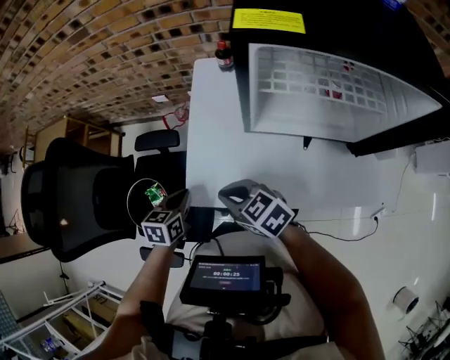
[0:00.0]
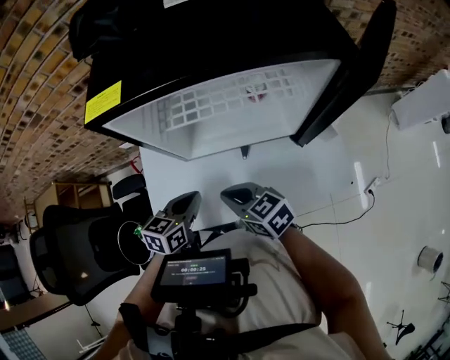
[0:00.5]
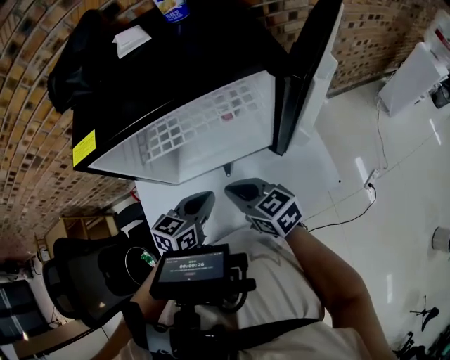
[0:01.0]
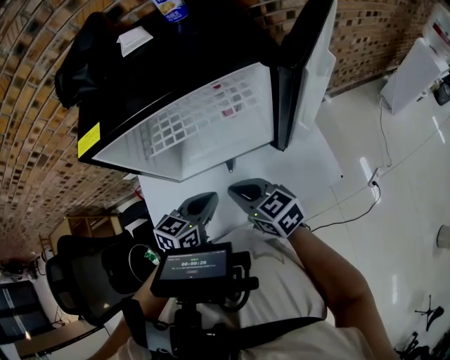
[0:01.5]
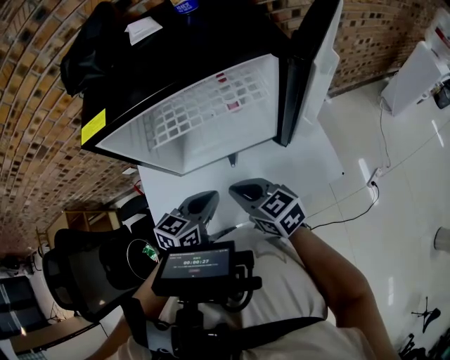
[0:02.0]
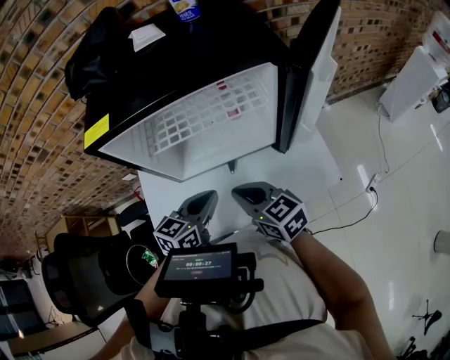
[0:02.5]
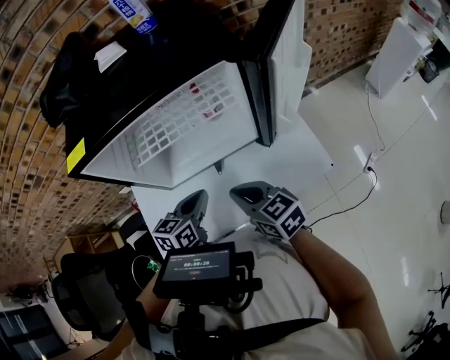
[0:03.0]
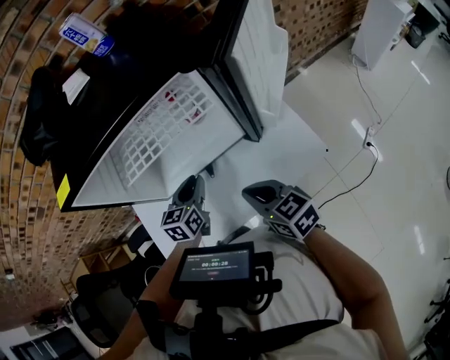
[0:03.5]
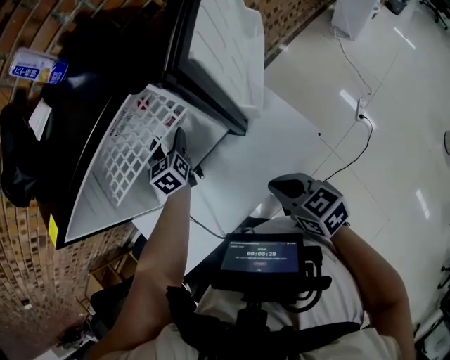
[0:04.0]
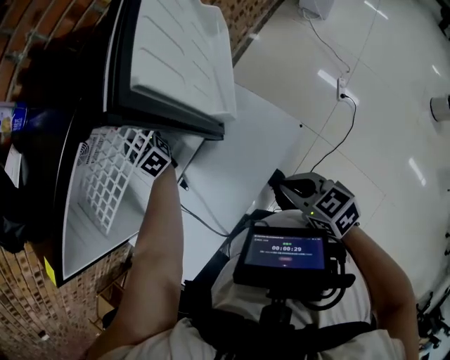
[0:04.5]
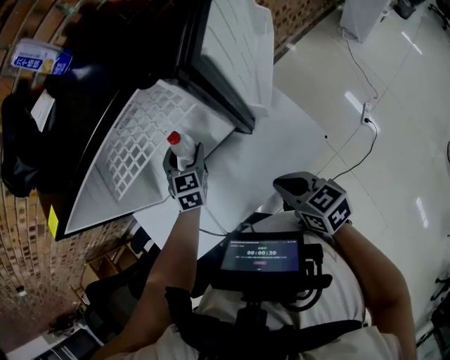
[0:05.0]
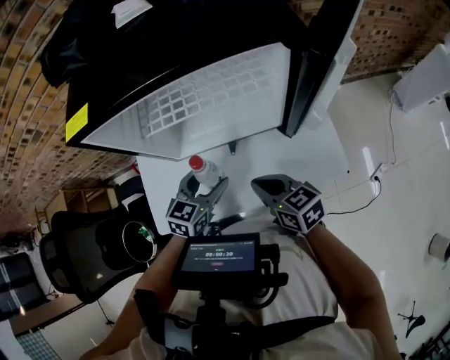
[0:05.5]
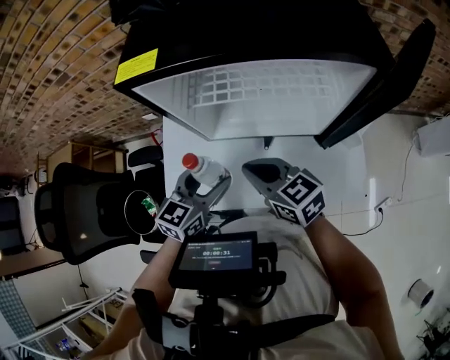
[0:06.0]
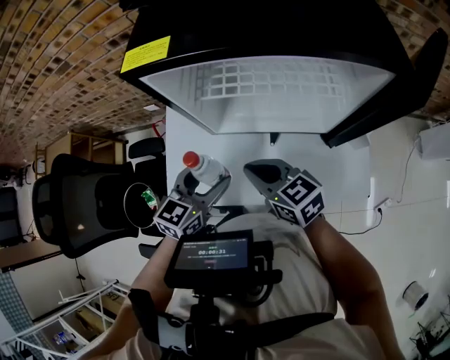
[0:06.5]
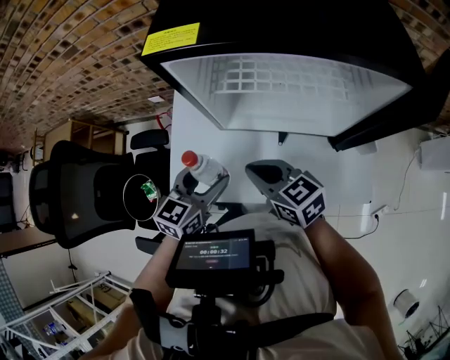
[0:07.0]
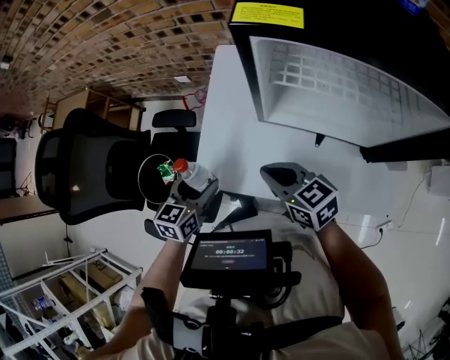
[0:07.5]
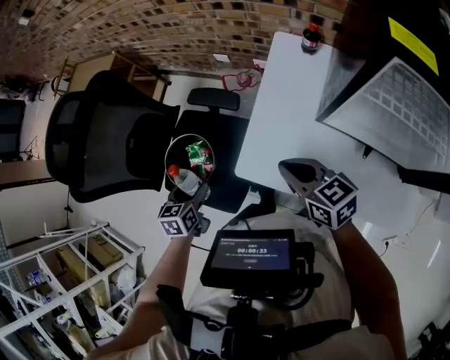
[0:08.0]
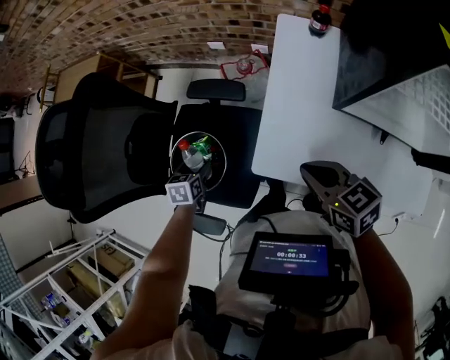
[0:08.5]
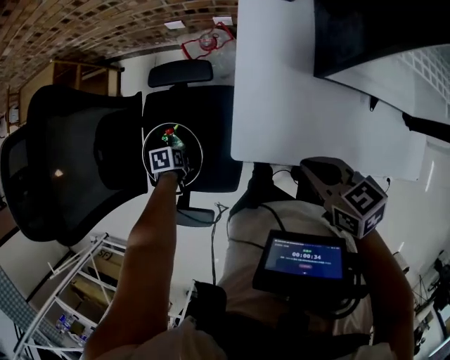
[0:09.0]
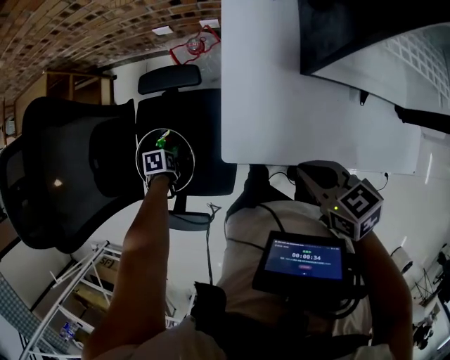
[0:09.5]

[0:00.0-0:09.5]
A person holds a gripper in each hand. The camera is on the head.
0.0 to 2.0 s: The right gripper moves about 30 cm, and rotates approximately 40 degrees, while the left gripper ends up some 35 cm from where it was, and rotates about 40 degrees.
2.0 to 4.0 s: The left gripper goes about 25 cm forward, rotates roughly 30 degrees, and opens up. Meanwhile the right gripper heads to the right, covering some 20 cm, and swivels approximately 30 degrees.
4.0 to 5.5 s: The left gripper shifts about 25 cm backward and to the left; the right gripper heads to the left and forward, covering roughly 15 cm, and swivels approximately 20 degrees.
5.5 to 7.5 s: The left gripper reaches about 5 cm upward, then returns, and rotates roughly 30 degrees; the right gripper moves approximately 20 cm, and turns by approximately 30 degrees.
7.5 to 9.5 s: The right gripper ends up approximately 10 cm from where it was, and swivels roughly 20 degrees, while the left gripper changes place by approximately 40 cm, and tips its fingers downward by roughly 50 degrees.

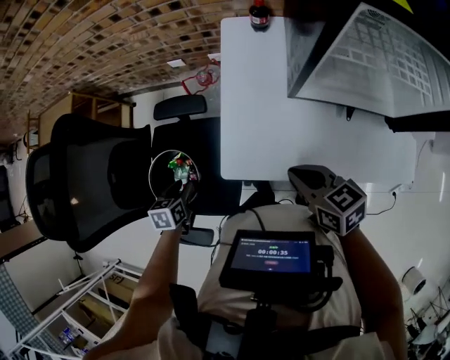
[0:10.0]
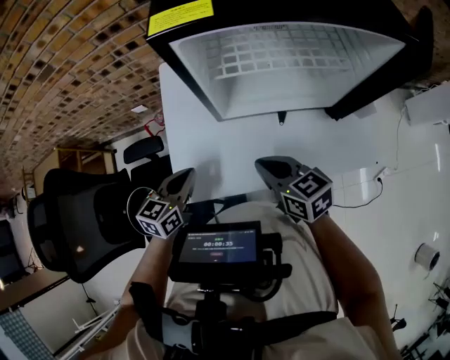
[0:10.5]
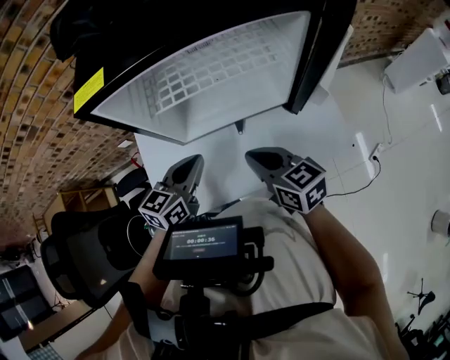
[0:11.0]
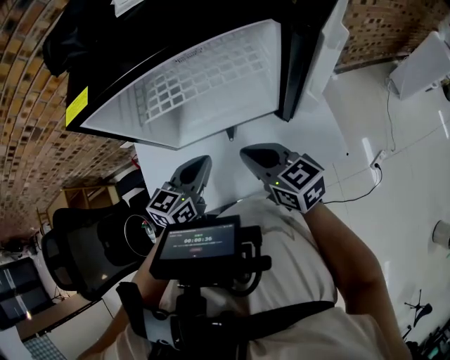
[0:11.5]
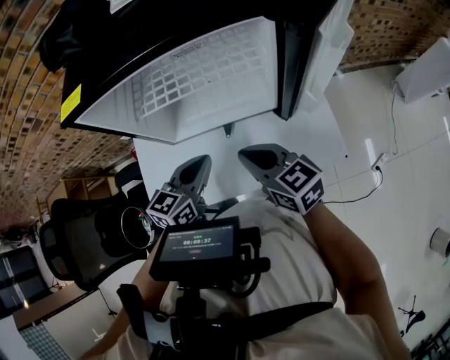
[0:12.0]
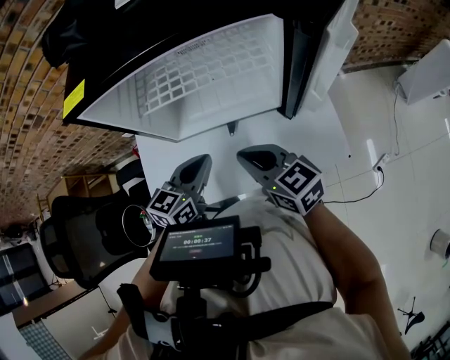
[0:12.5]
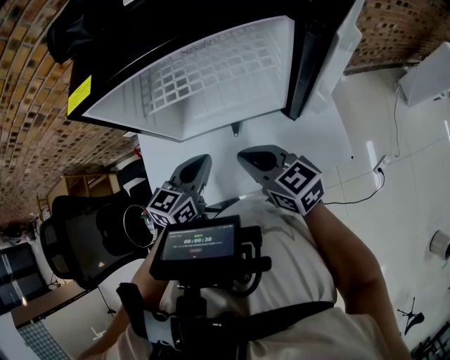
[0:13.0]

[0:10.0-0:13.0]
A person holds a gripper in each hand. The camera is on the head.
10.0 to 11.5 s: The right gripper moves some 30 cm, and swivels some 30 degrees. Meanwhile the left gripper moves roughly 60 cm, points its fingers some 30 degrees further upward, and closes its fingers.
11.5 to 13.0 s: The grippers move only a little.

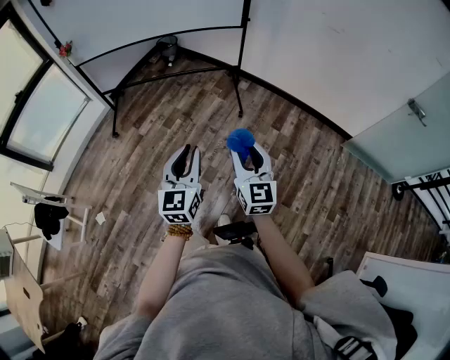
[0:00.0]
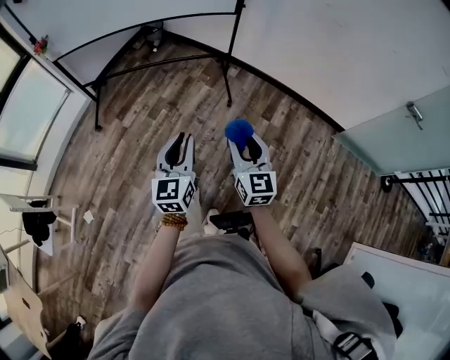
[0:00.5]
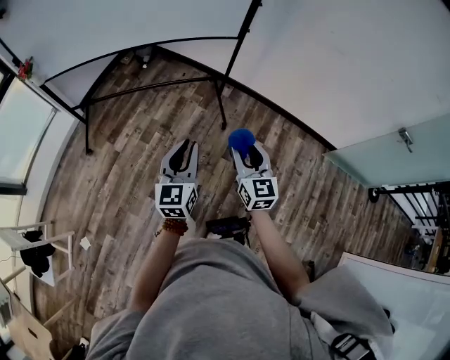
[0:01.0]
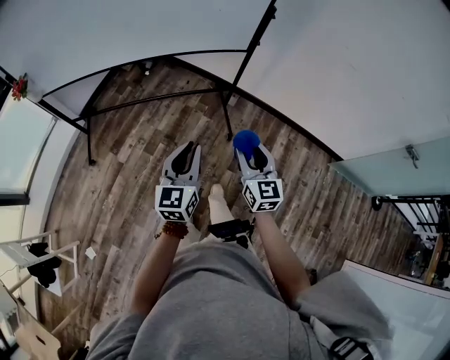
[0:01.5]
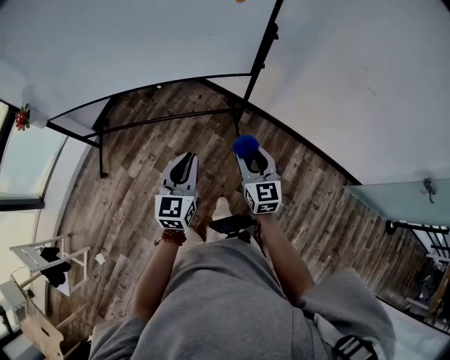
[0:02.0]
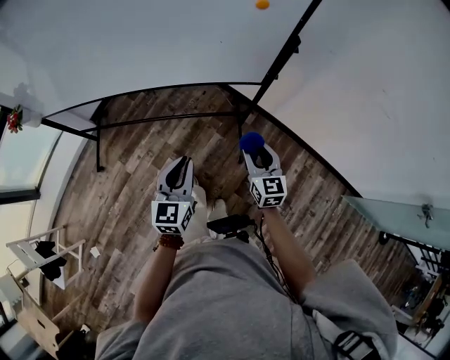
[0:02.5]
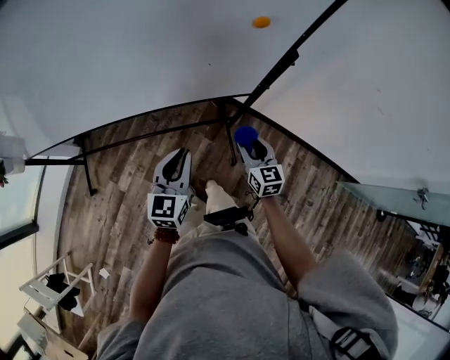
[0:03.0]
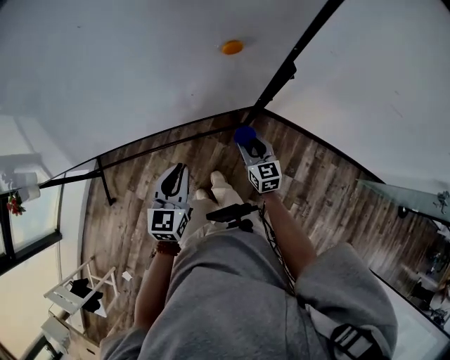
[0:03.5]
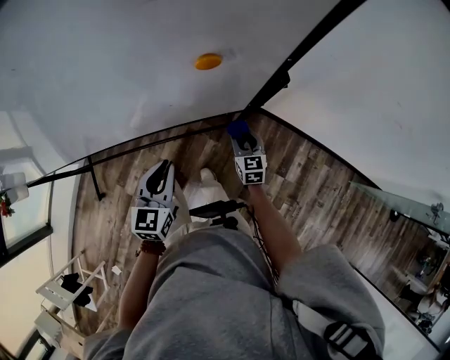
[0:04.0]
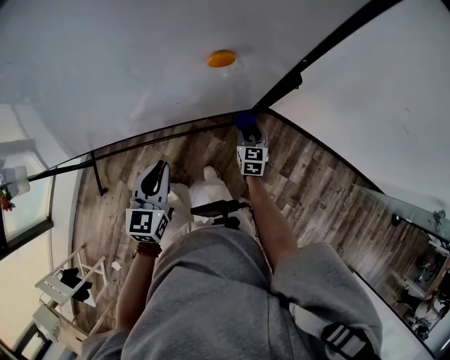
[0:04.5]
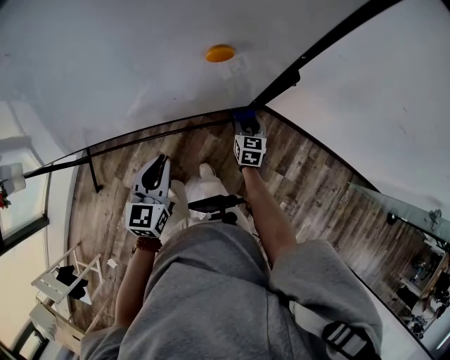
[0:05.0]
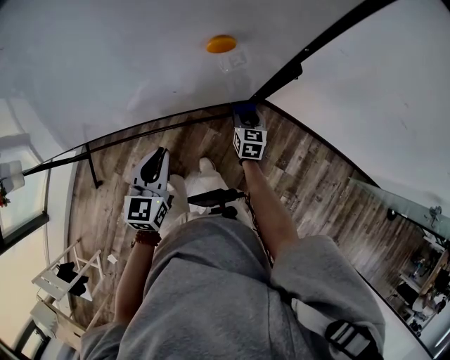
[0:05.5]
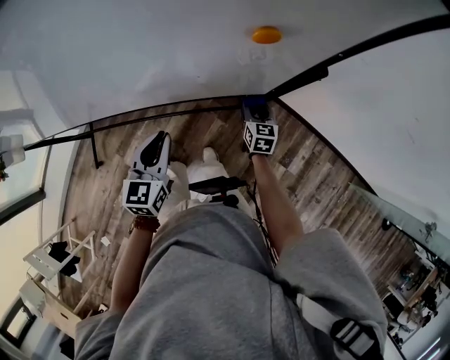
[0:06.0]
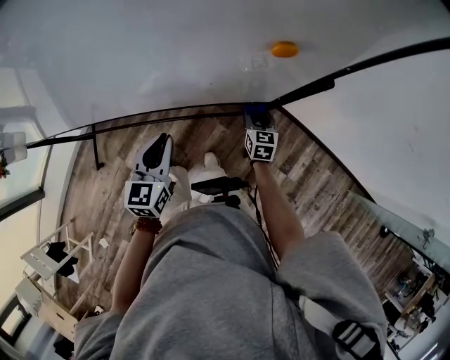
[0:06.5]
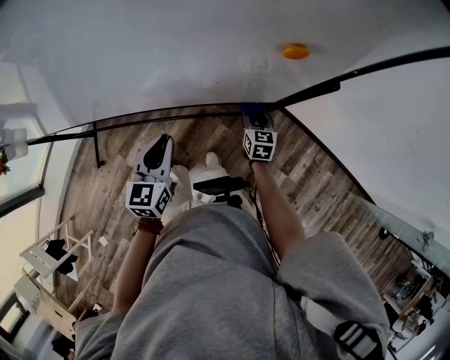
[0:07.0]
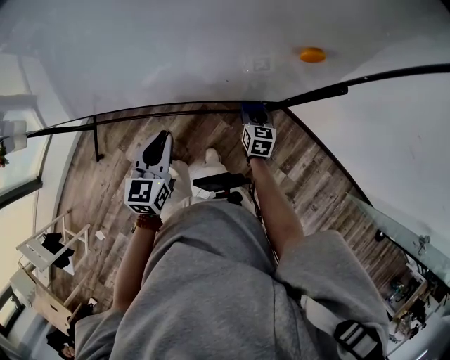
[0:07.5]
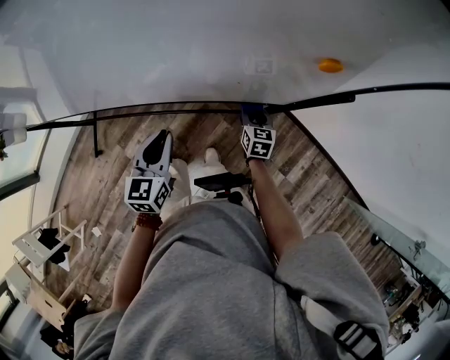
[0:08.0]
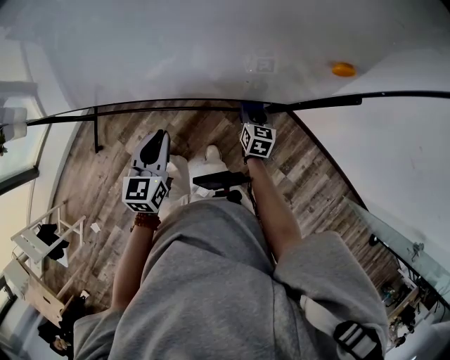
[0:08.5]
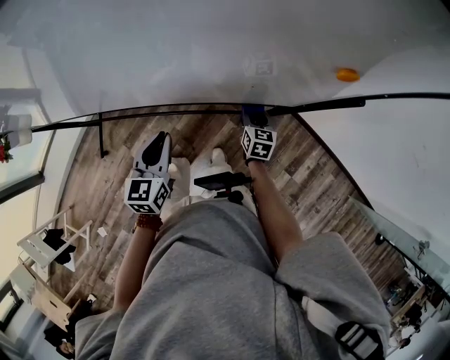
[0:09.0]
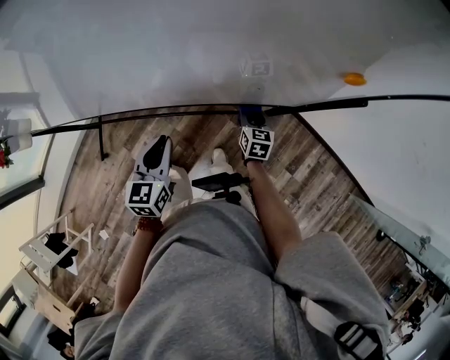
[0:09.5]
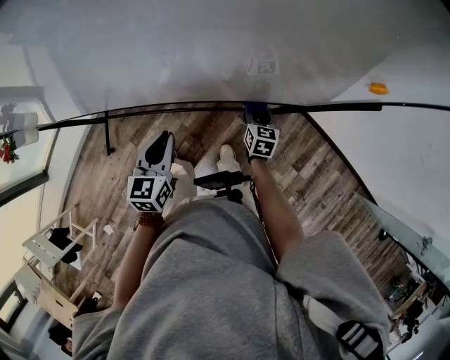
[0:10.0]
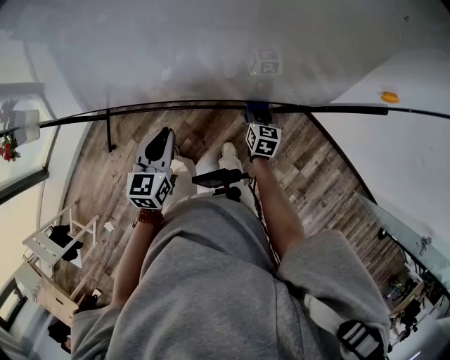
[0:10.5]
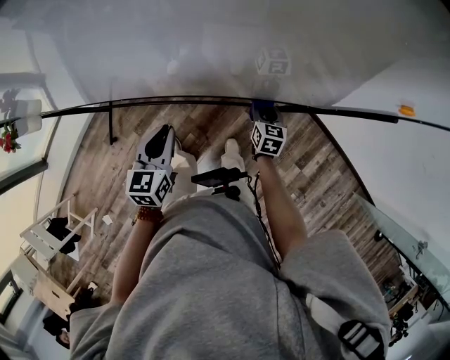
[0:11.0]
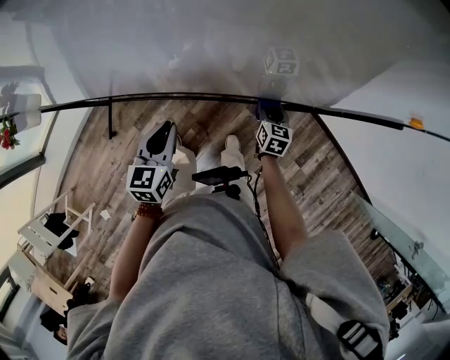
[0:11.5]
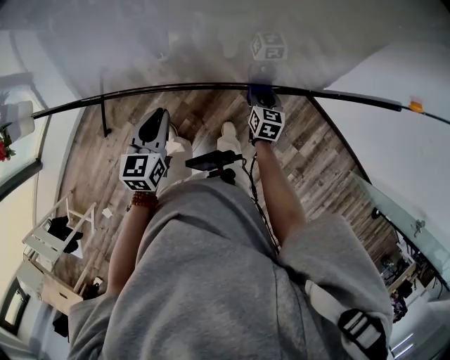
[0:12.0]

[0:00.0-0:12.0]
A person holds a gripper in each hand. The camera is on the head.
0.0 to 2.0 s: The pair of grippers is taken forward, approximately 50 cm.
2.0 to 4.0 s: The left gripper shifts roughly 30 cm forward. Meanwhile the right gripper goes about 40 cm forward and downward.
4.0 to 6.0 s: The left gripper travels to the left by some 5 cm; the right gripper shifts about 5 cm forward.
6.0 to 8.0 s: The grippers both shift to the left by approximately 5 cm.
8.0 to 10.0 s: Both grippers move to the left, roughly 10 cm.
10.0 to 12.0 s: The right gripper shifts about 5 cm to the left, while the left gripper goes approximately 10 cm to the left.

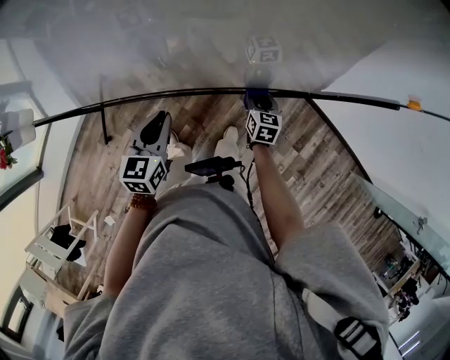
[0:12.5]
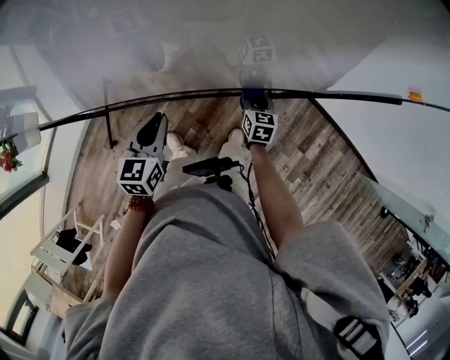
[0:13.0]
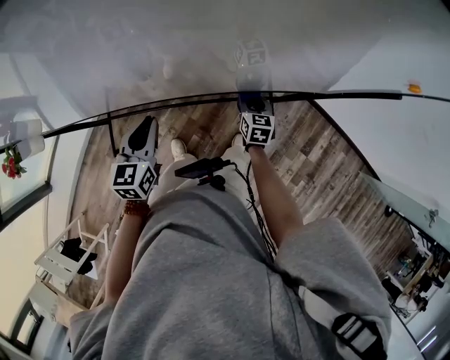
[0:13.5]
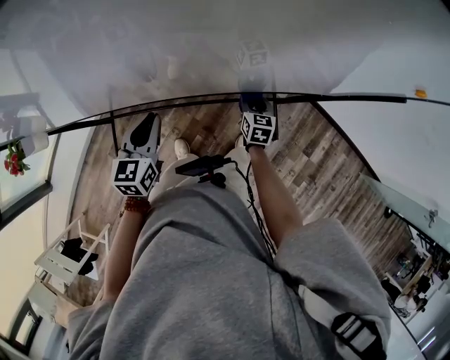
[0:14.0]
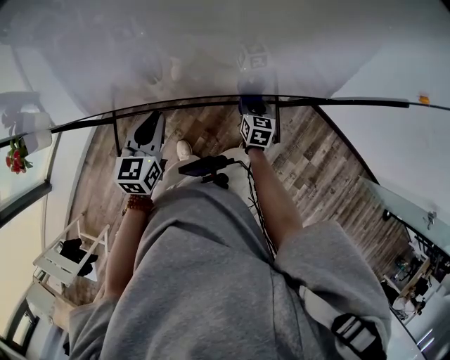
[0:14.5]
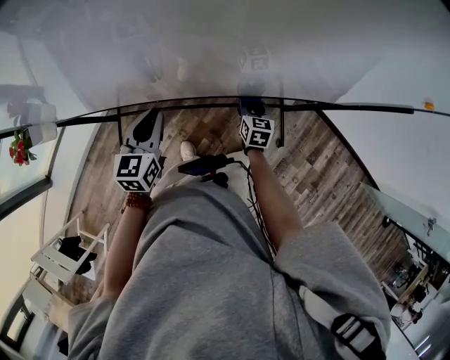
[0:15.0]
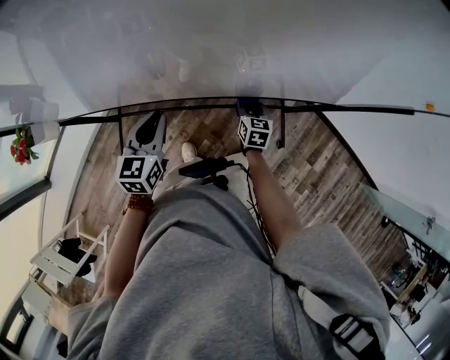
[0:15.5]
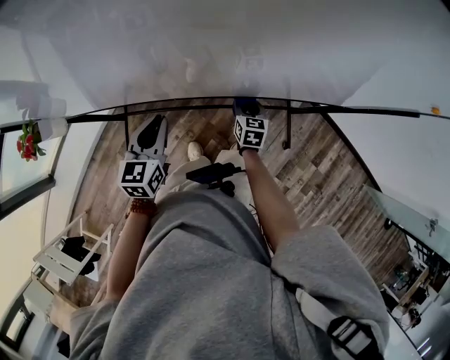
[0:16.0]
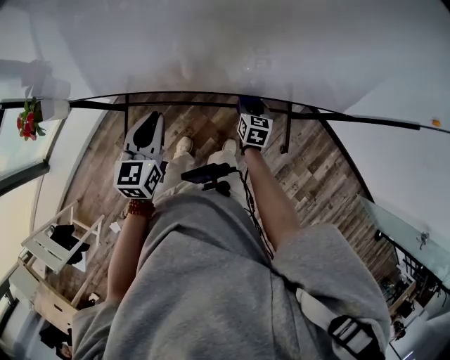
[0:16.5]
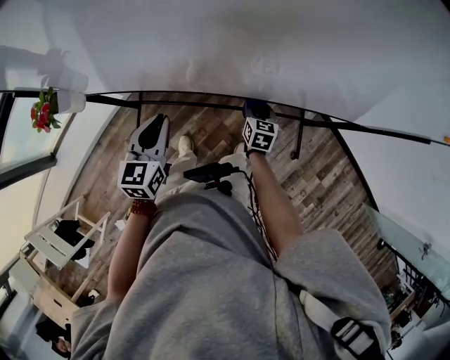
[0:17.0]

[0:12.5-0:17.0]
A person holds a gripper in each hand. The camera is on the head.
12.5 to 14.5 s: The grippers both shift to the left by some 10 cm.
14.5 to 17.0 s: Both grippers travel together to the left, some 15 cm.
